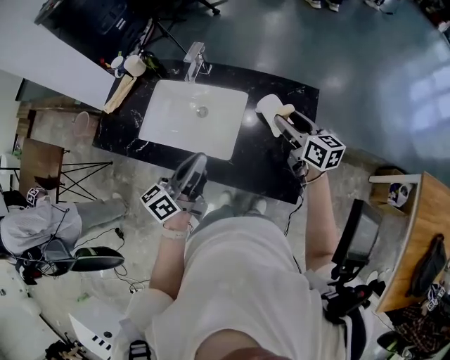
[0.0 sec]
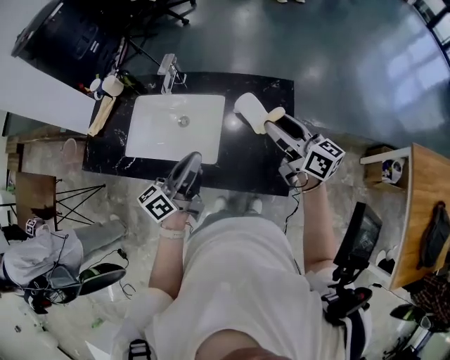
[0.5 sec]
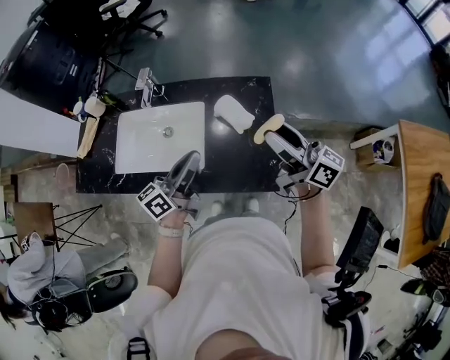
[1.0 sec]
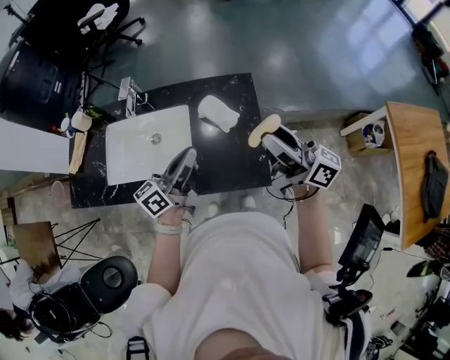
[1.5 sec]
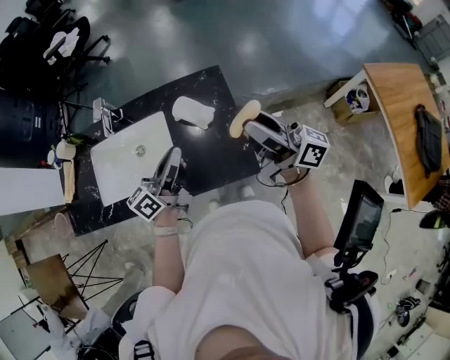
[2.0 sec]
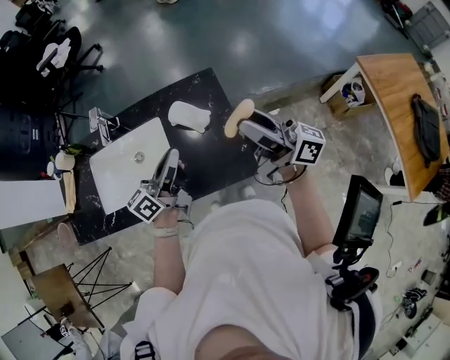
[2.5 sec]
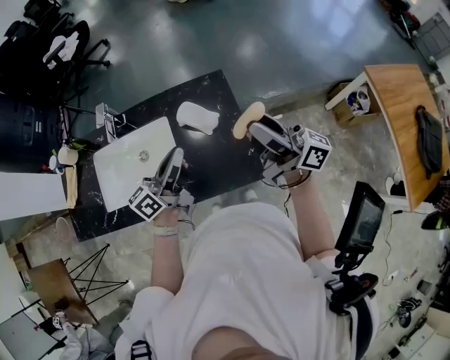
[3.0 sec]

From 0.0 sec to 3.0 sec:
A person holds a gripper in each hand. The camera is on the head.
From 0.0 sec to 1.5 sec: The right gripper shifts about 20 cm upward, backward and to the right, and tilts its fingers some 30 degrees upward, while the left gripper is displaced to the right by roughly 10 cm, and rotates approximately 20 degrees.
From 1.5 sec to 3.0 sec: There are only small adjustments of the grippers.

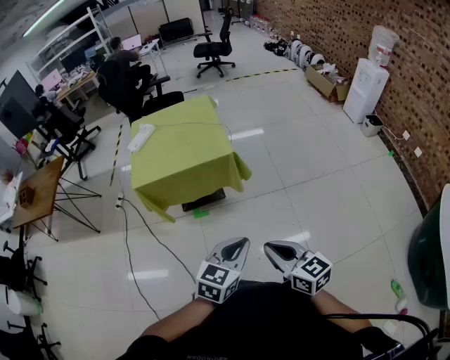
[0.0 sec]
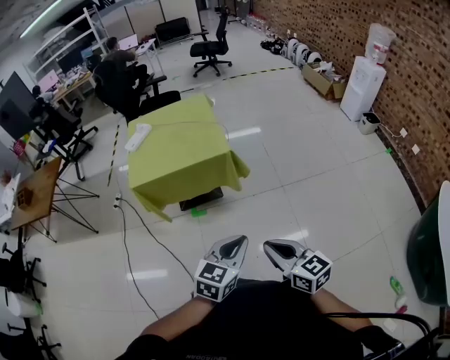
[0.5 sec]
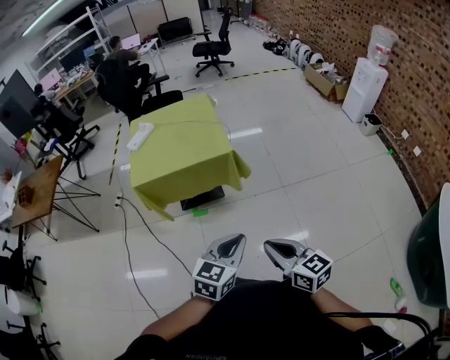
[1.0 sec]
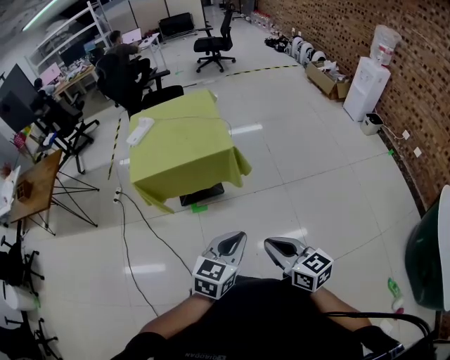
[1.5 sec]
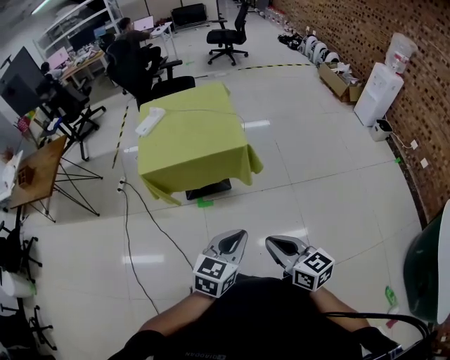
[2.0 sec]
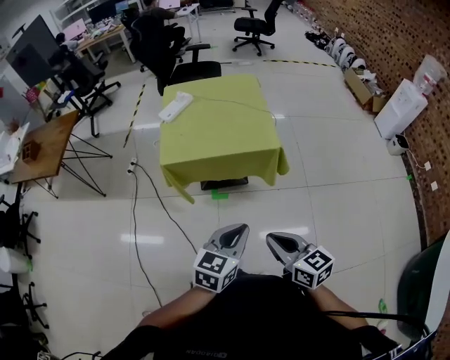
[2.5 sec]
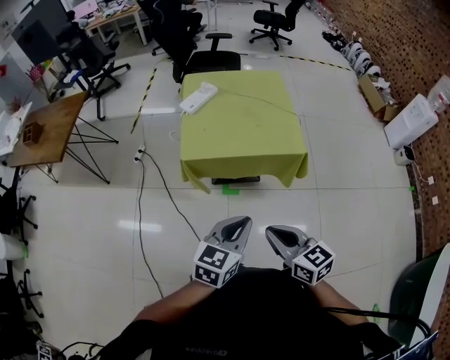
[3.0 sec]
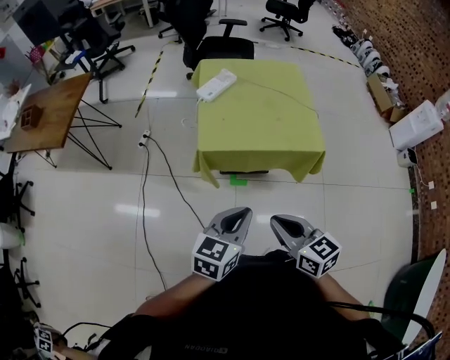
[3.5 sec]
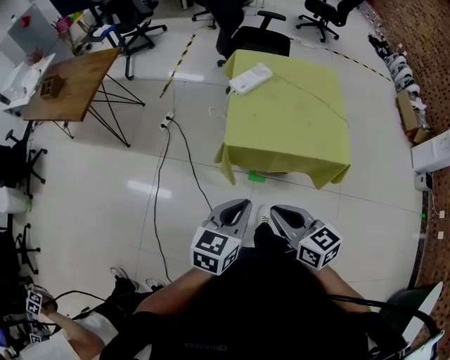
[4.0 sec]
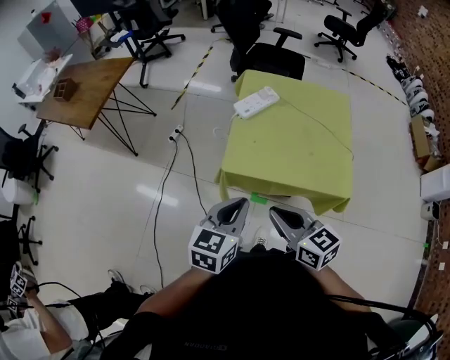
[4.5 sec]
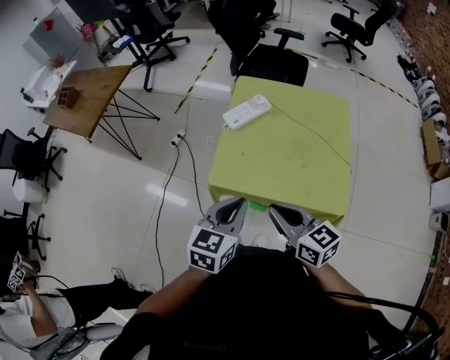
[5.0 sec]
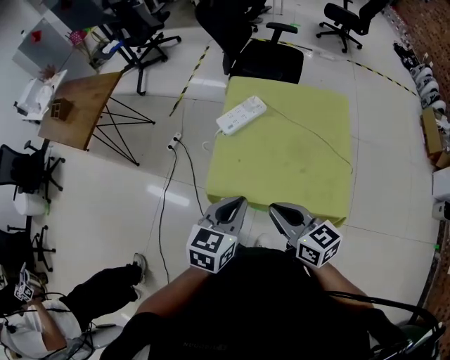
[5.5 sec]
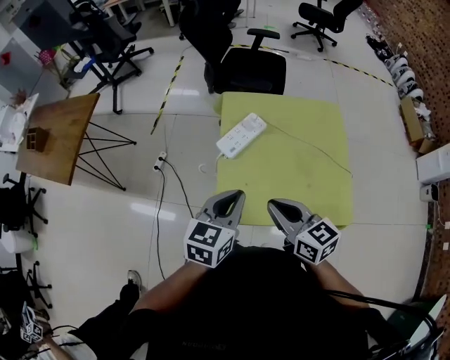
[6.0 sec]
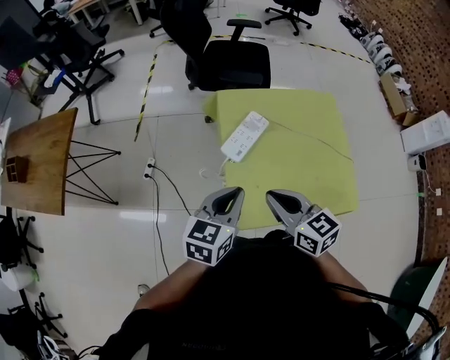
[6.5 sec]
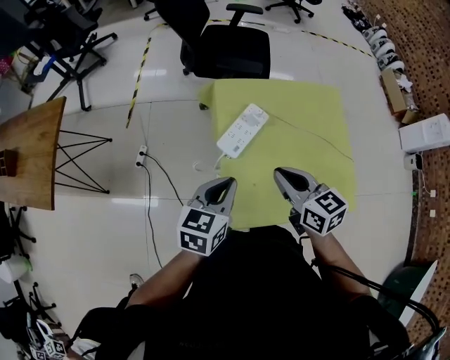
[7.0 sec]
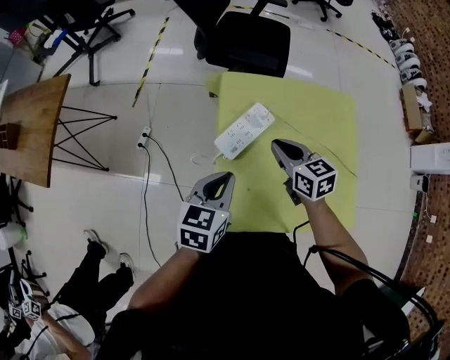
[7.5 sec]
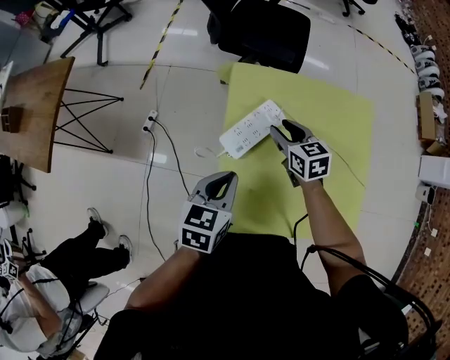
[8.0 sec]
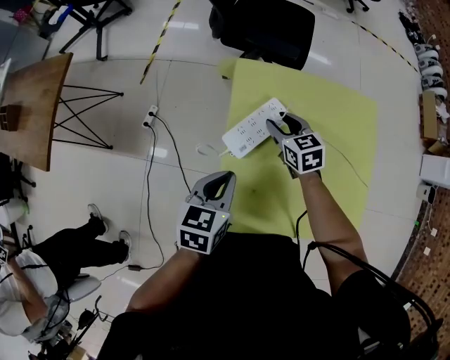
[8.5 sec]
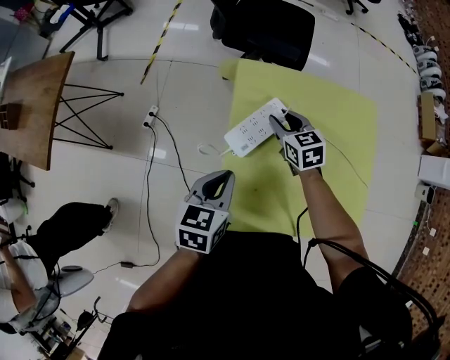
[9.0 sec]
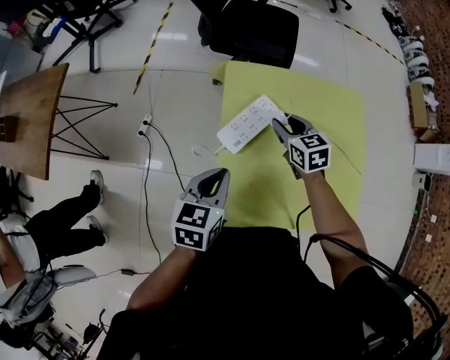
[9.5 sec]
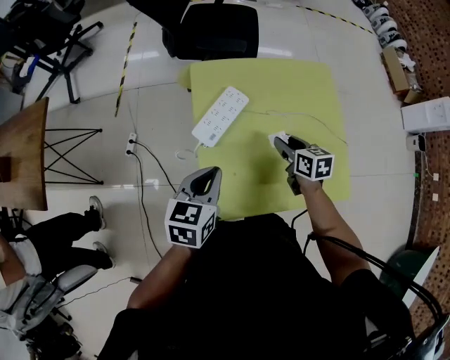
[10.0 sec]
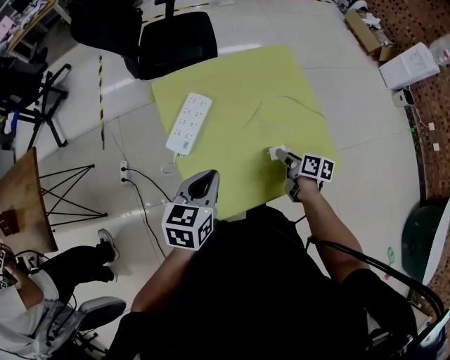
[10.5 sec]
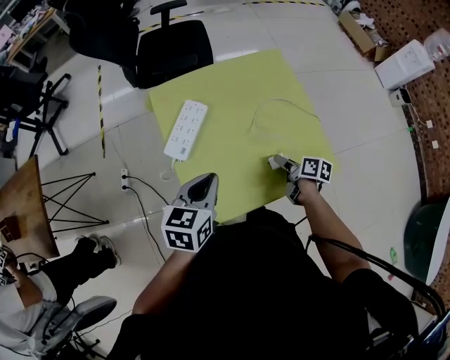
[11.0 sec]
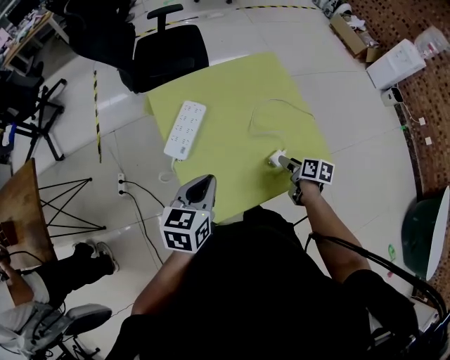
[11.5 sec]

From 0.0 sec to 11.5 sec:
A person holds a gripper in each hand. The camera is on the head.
From 0.0 sec to 2.0 sec: The right gripper shifts by some 5 cm. The left gripper shifts approximately 5 cm to the left.
From 2.0 sec to 4.0 sec: The pair of grippers is taken to the left and forward, roughly 40 cm. The right gripper rotates roughly 20 degrees; the left gripper swivels roughly 20 degrees.
From 4.0 sec to 6.0 sec: Both grippers move forward, approximately 30 cm.
From 6.0 sec to 7.5 sec: The right gripper moves forward and downward, about 25 cm, while the left gripper travels forward and downward by some 15 cm.
From 7.5 sec to 9.5 sec: The right gripper moves forward and downward, approximately 10 cm, and opens its fingers.
From 9.5 sec to 11.5 sec: The right gripper moves to the right and backward, about 35 cm, rolls clockwise, seen from behind, by about 60 degrees, and opens its fingers; the left gripper moves to the right, some 10 cm, and rotates about 20 degrees.

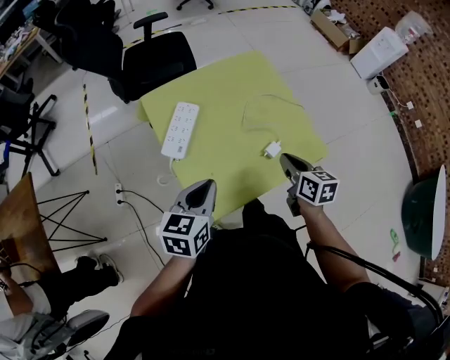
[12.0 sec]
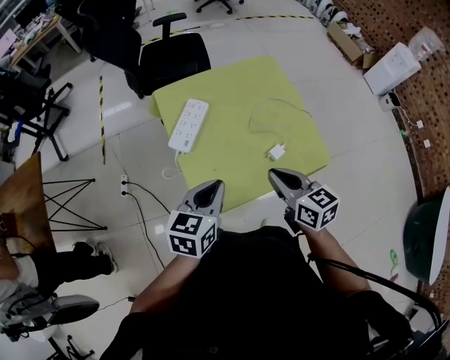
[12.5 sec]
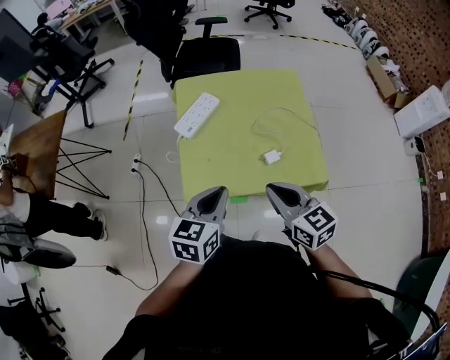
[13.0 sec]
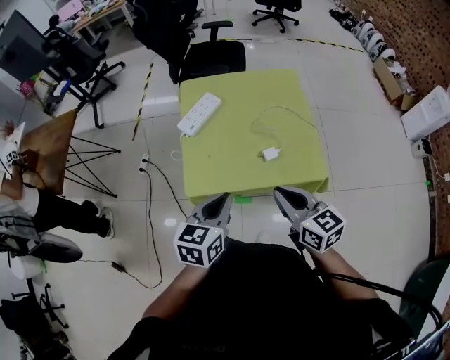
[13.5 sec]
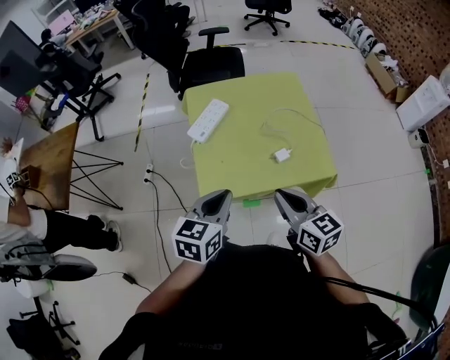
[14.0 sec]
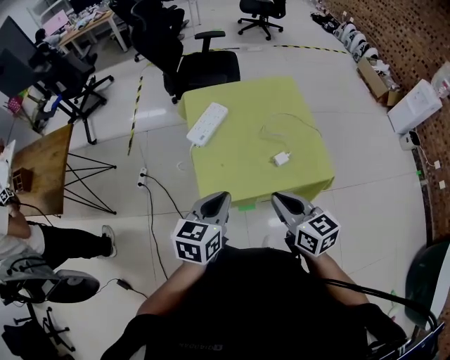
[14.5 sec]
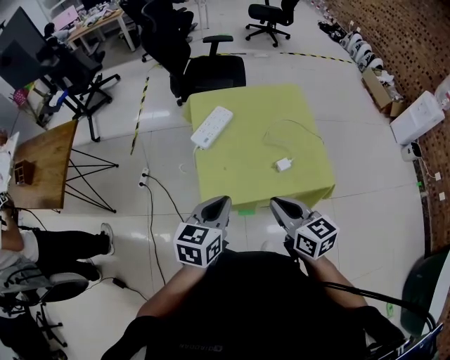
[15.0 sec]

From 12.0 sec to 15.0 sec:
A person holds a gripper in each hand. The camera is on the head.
From 12.0 sec to 13.5 sec: The right gripper moves approximately 15 cm, and swivels about 40 degrees. Meanwhile the left gripper changes place by about 20 cm, and swivels approximately 20 degrees.
From 13.5 sec to 15.0 sec: The two grippers go approximately 10 cm to the left.

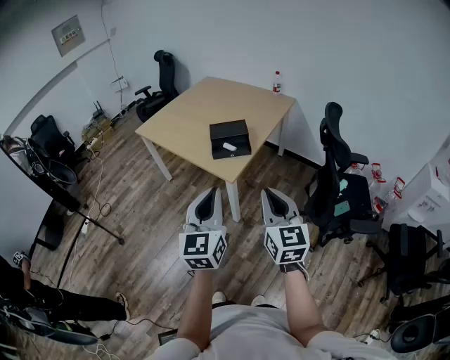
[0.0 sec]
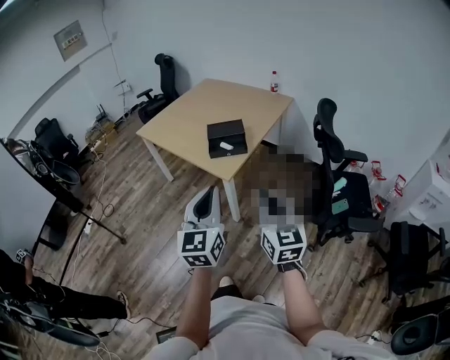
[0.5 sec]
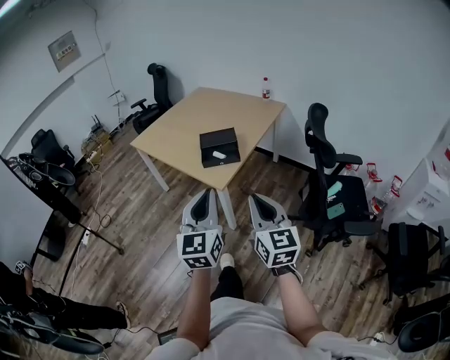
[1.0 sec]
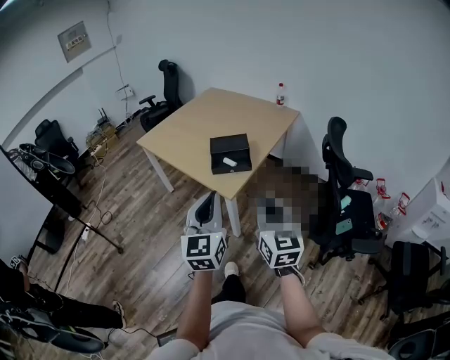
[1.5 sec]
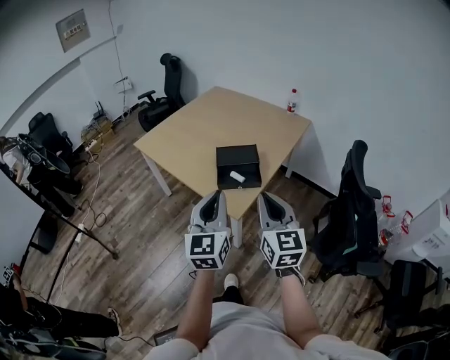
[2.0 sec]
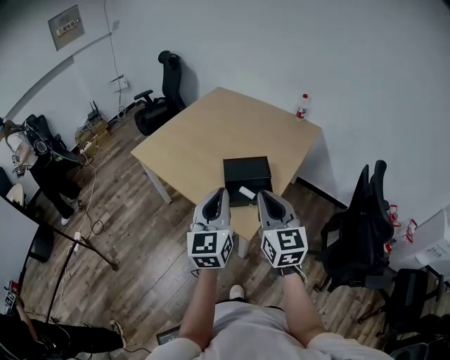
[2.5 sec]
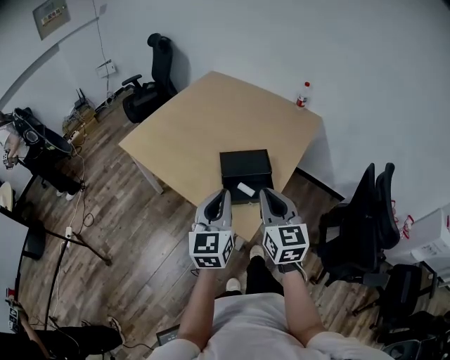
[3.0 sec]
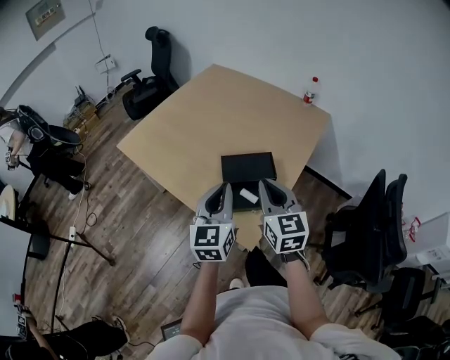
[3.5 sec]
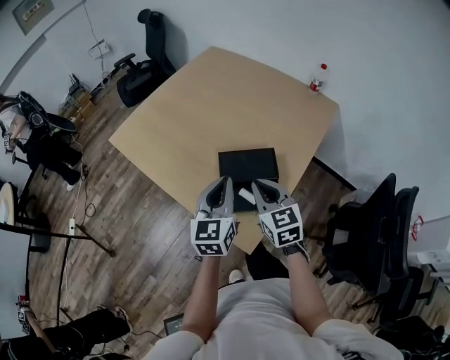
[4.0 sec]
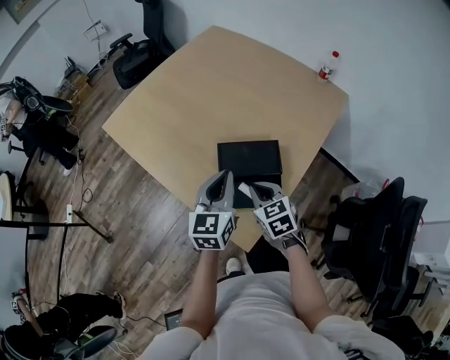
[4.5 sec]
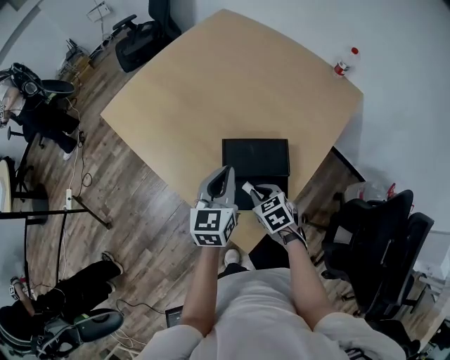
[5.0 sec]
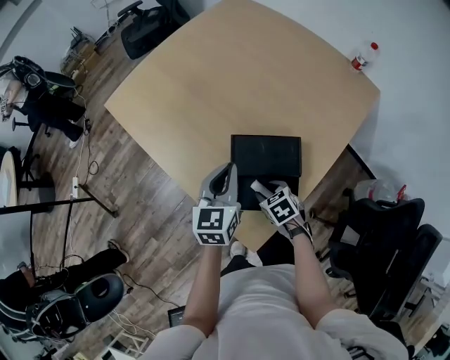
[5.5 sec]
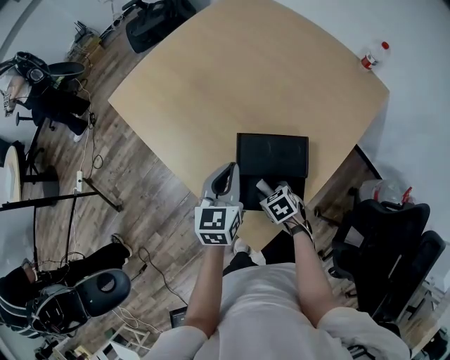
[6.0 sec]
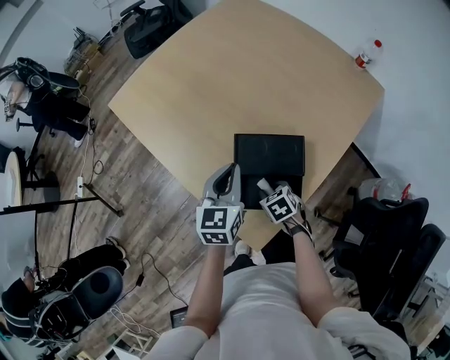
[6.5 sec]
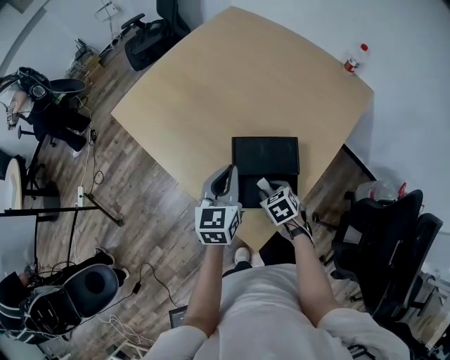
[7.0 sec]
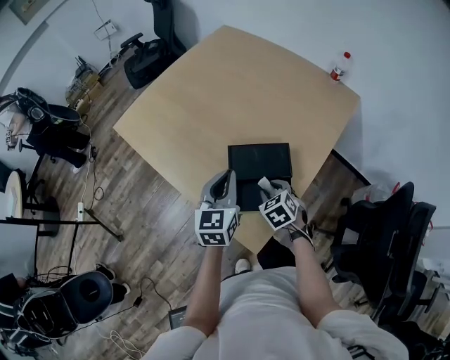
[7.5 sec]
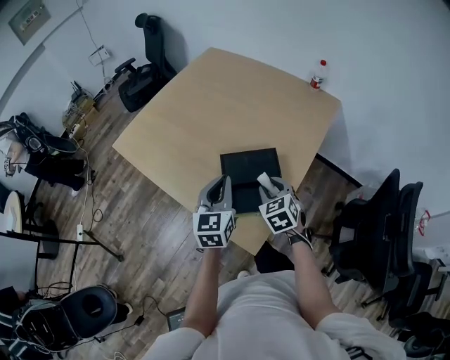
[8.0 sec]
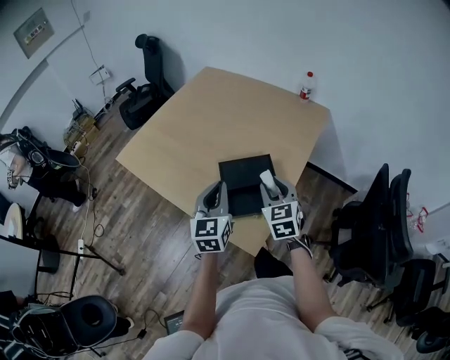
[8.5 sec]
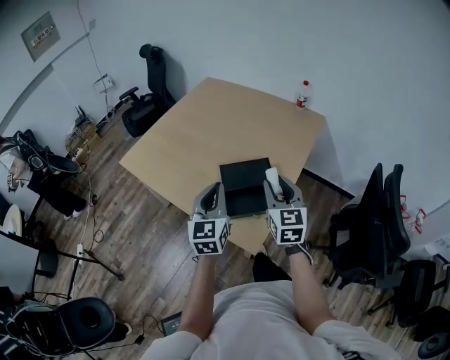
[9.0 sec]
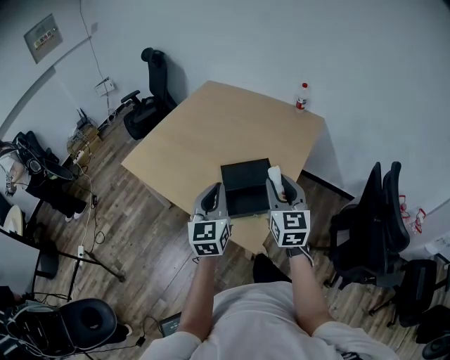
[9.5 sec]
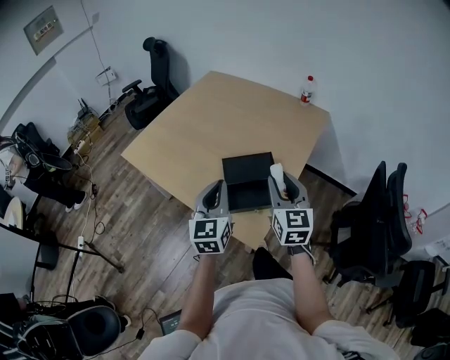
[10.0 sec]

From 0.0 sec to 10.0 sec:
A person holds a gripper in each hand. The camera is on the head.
From 0.0 sec to 2.0 sec: Both grippers move forward, some 20 cm.
From 2.0 sec to 4.0 sec: The left gripper travels forward by roughly 35 cm; the right gripper is displaced forward and downward by approximately 35 cm, and rotates about 20 degrees.
From 4.0 sec to 6.0 sec: The right gripper is displaced downward by roughly 30 cm, tilts its fingers about 40 degrees downward, and opens up, while the left gripper heads downward and forward, covering roughly 15 cm.
From 6.0 sec to 8.0 sec: The left gripper moves upward, approximately 10 cm. The right gripper shifts some 20 cm upward, and swivels approximately 40 degrees.
From 8.0 sec to 10.0 sec: The left gripper travels backward and upward by roughly 10 cm. Meanwhile the right gripper travels upward and backward by about 20 cm, and tilts its fingers some 30 degrees upward.
